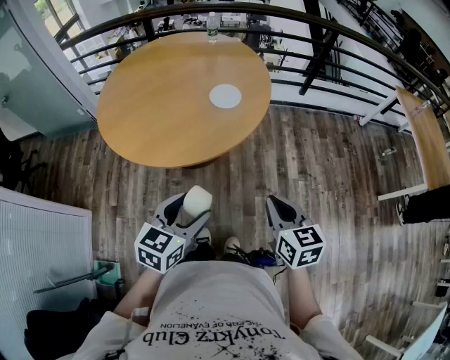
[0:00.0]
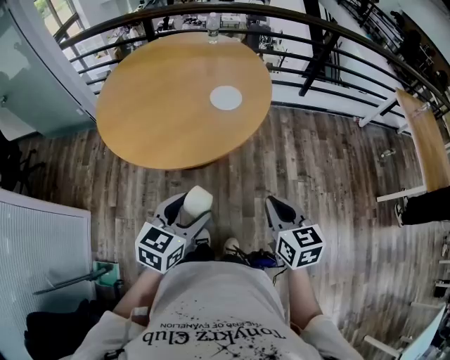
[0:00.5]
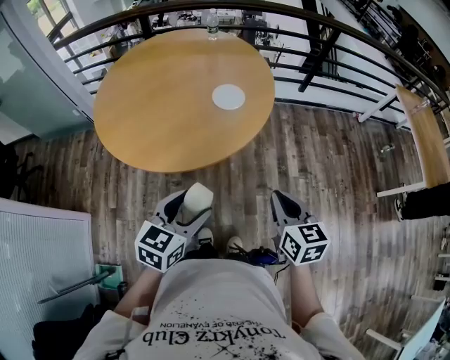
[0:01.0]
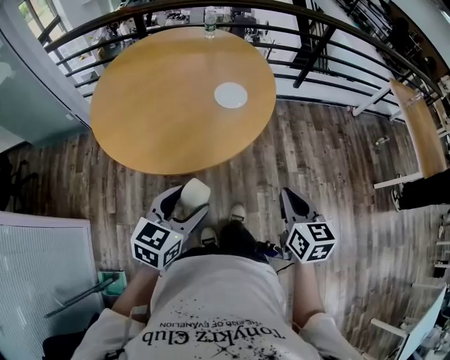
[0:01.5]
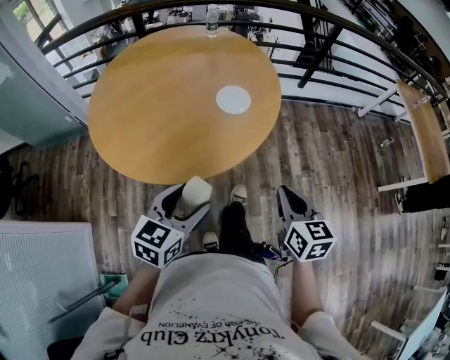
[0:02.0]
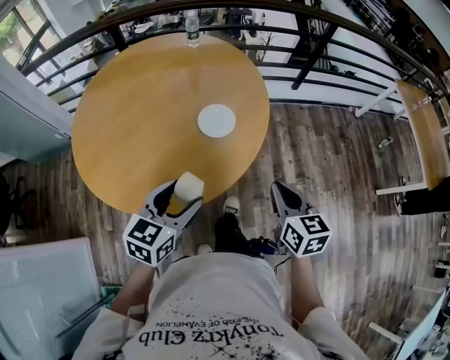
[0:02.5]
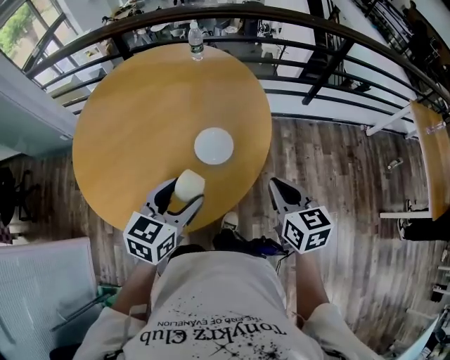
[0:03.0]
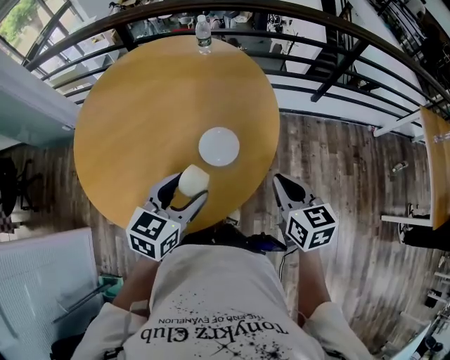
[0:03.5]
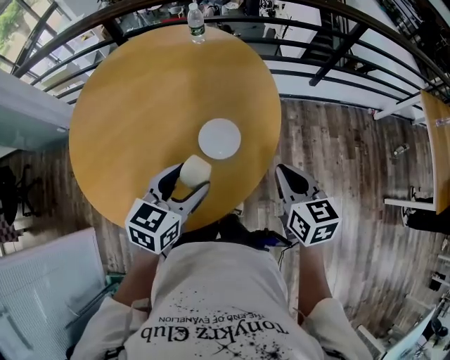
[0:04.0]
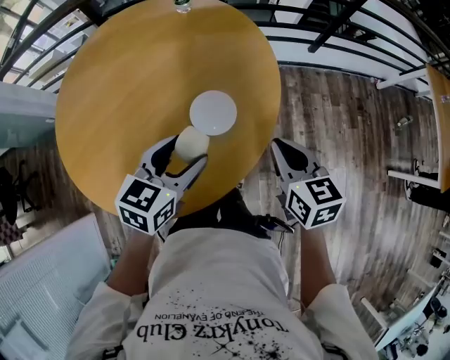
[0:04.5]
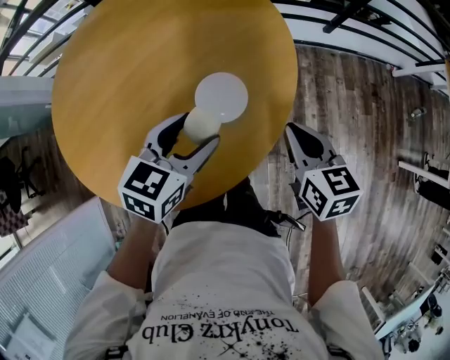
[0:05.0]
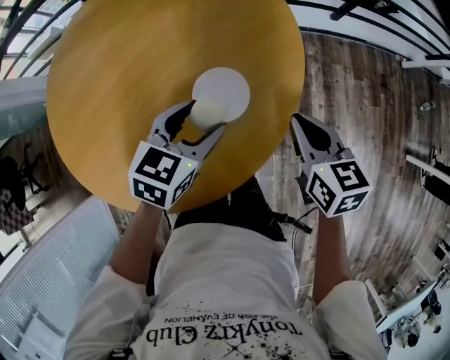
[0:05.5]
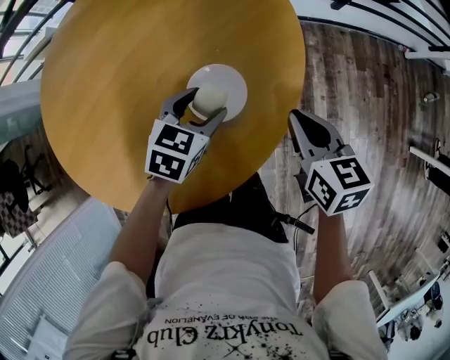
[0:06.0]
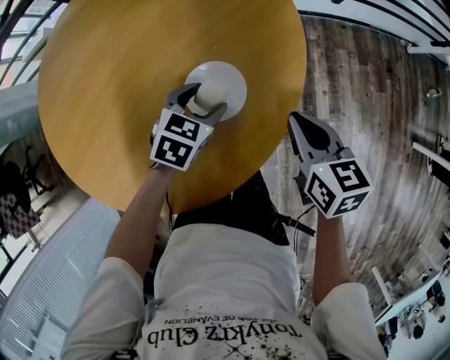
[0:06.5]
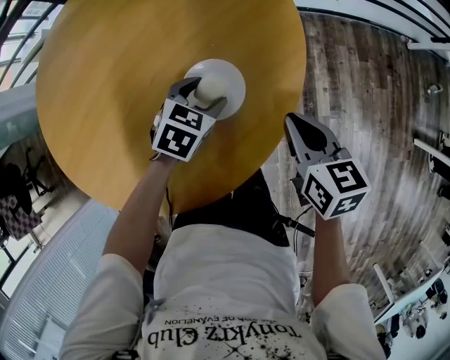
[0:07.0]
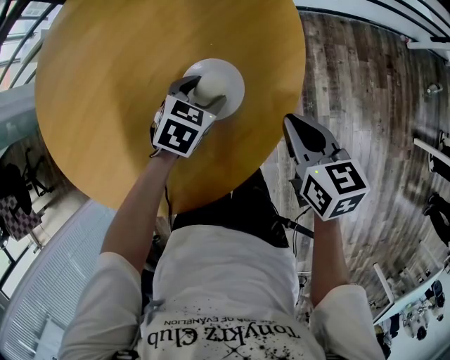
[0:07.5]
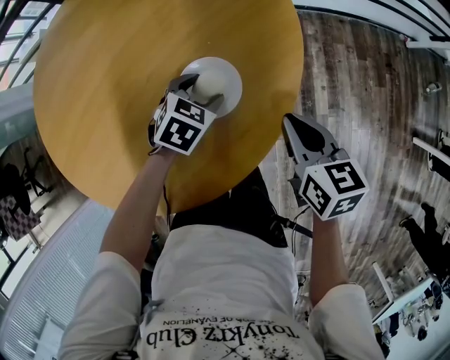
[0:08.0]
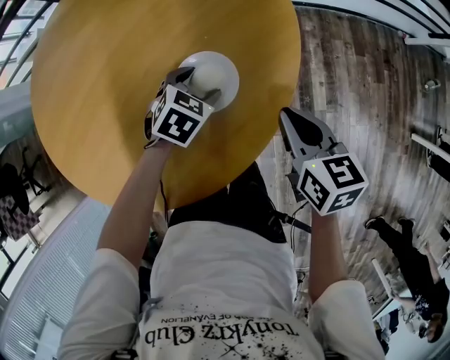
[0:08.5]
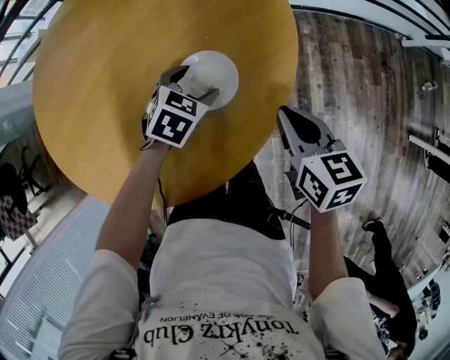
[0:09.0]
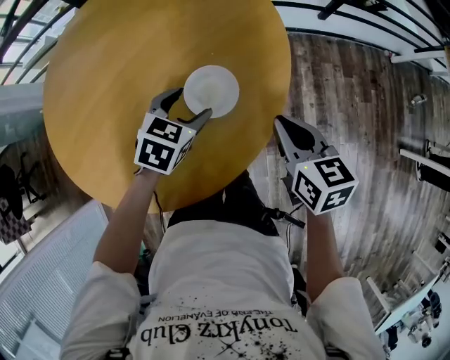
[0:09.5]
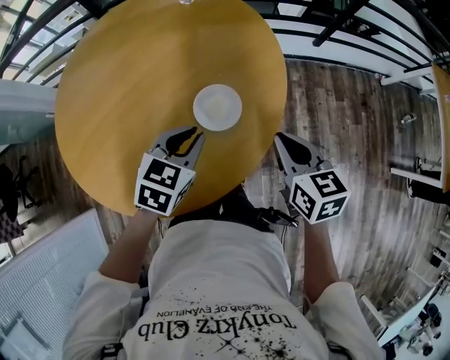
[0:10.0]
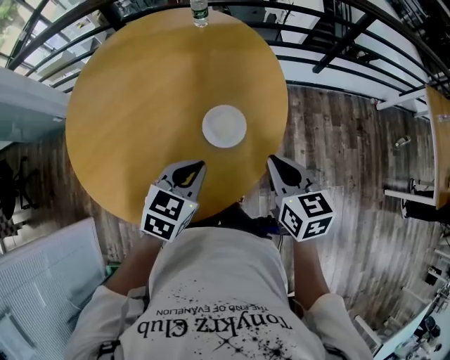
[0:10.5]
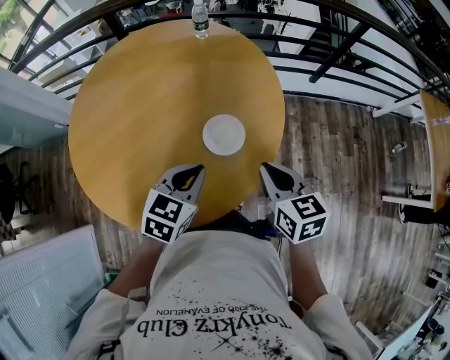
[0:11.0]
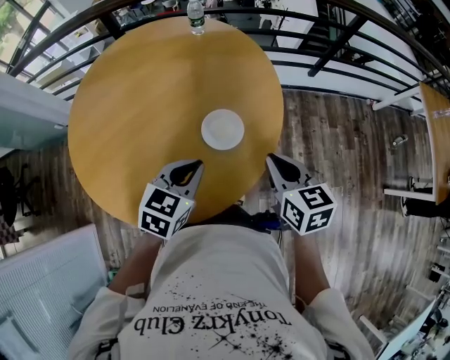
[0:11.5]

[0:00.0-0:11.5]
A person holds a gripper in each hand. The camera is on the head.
0:00.0 to 0:02.0: The left gripper travels to the left and forward by approximately 15 cm. Meanwhile the right gripper heads forward and to the left, covering some 10 cm.
0:02.0 to 0:04.0: The two grippers go roughly 30 cm forward.
0:04.0 to 0:06.0: The right gripper moves downward and forward, some 15 cm. The left gripper shifts about 25 cm downward and forward, and rotates some 20 degrees.
0:06.0 to 0:07.5: The left gripper heads downward, covering about 5 cm.
0:07.5 to 0:09.5: The right gripper travels upward by roughly 5 cm. The left gripper shifts roughly 10 cm upward.
0:09.5 to 0:11.5: The right gripper is displaced upward and backward by some 10 cm, while the left gripper shifts roughly 20 cm upward and backward, and closes its fingers.

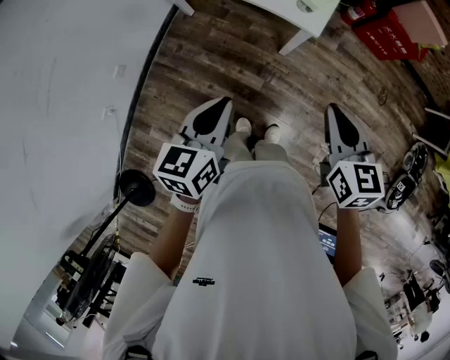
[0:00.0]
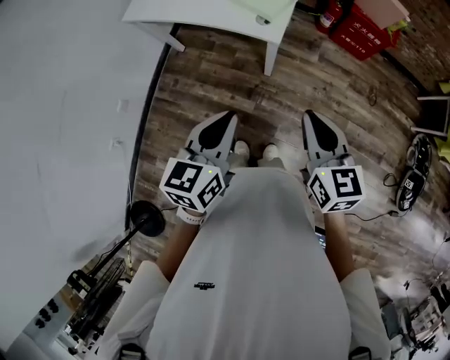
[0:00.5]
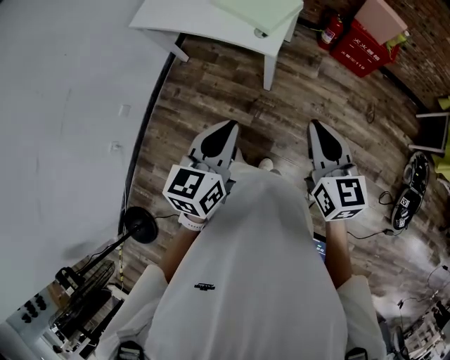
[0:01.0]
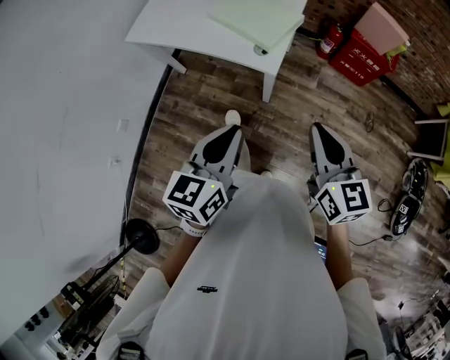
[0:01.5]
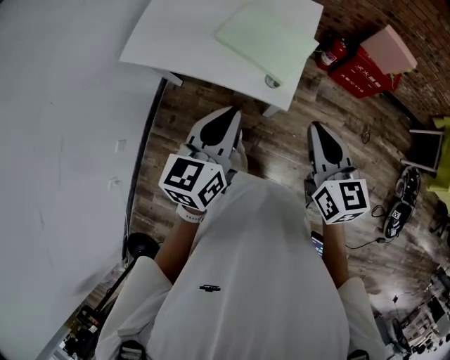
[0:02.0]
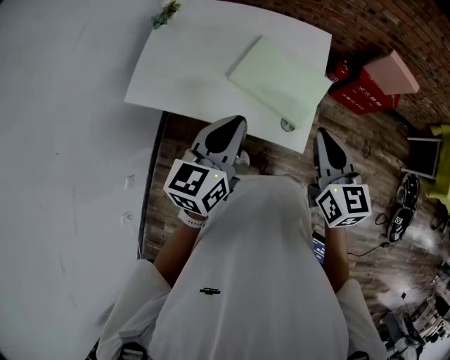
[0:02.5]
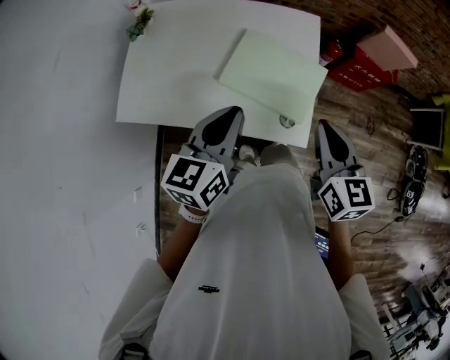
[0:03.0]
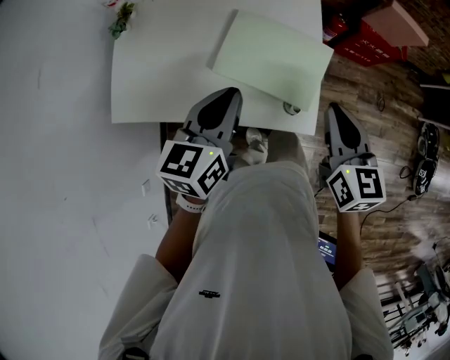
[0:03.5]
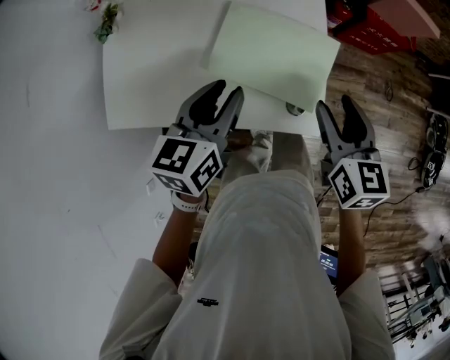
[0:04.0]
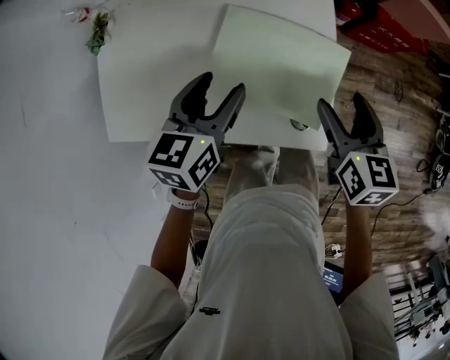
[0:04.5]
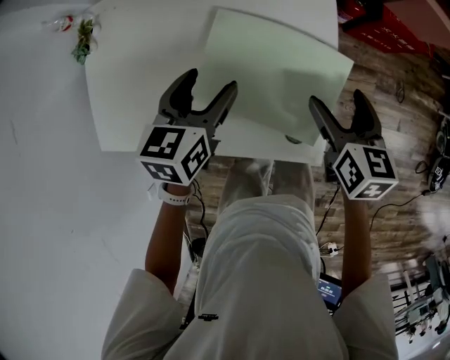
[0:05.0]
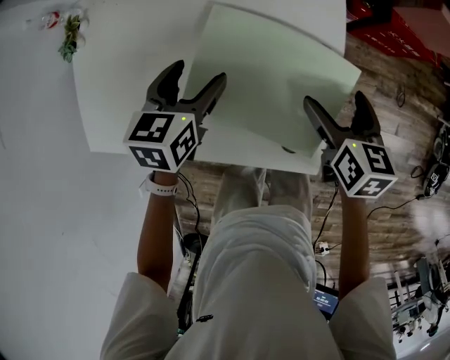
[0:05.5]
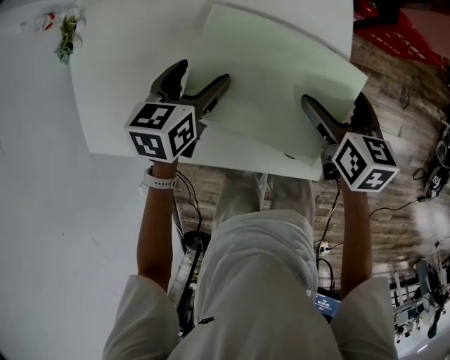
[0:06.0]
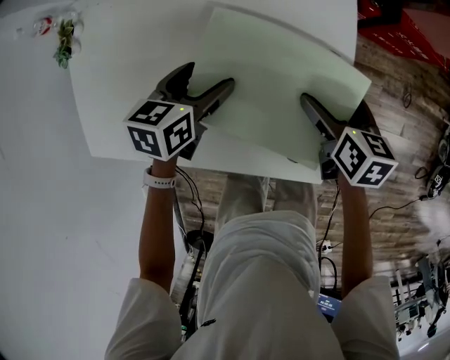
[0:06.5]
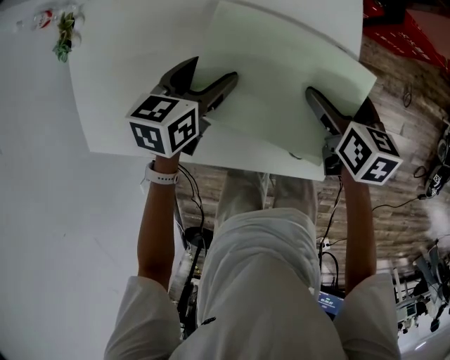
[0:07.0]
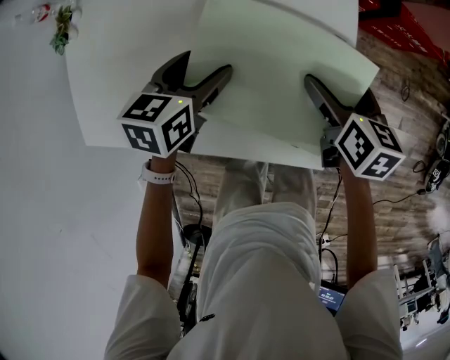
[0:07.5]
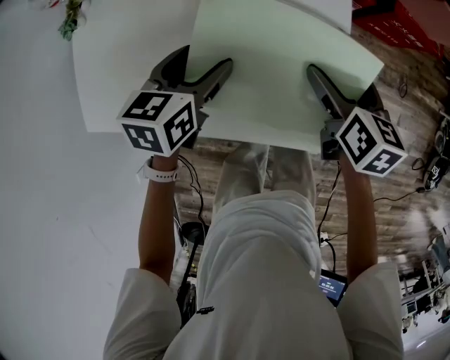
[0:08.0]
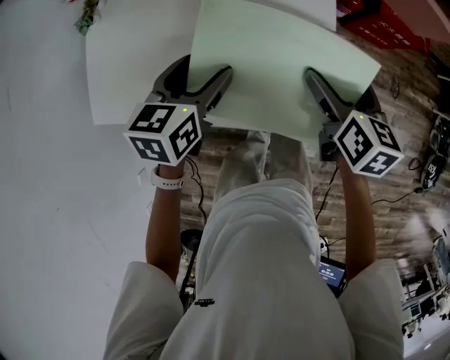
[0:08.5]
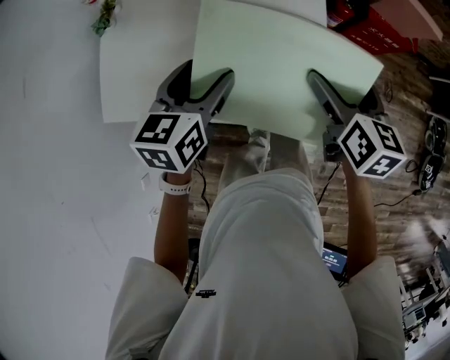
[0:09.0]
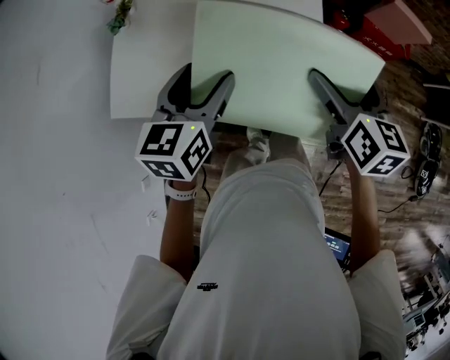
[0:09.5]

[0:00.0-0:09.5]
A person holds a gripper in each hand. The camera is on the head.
0:00.0 to 0:02.0: Both grippers move forward and upward, some 20 cm.
0:02.0 to 0:04.0: The right gripper goes about 20 cm forward and downward, rotates approximately 20 degrees, and opens its fingers, while the left gripper moves forward, about 25 cm, and changes its angle by about 20 degrees.
0:04.0 to 0:05.5: The grippers both shift downward and forward by some 20 cm. The right gripper opens up, while the left gripper opens up.
0:05.5 to 0:07.5: The grippers stay close to where they were, moving slightly.
0:07.5 to 0:09.5: The right gripper goes roughly 25 cm upward, and turns by about 20 degrees. Meanwhile the left gripper travels upward and backward by roughly 25 cm, and swivels some 20 degrees.

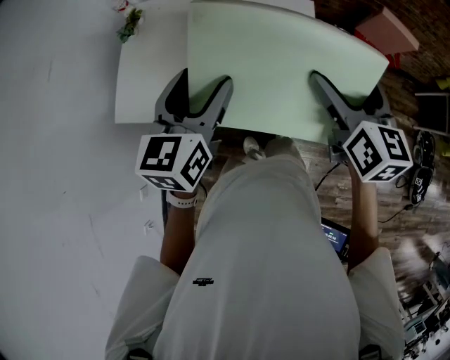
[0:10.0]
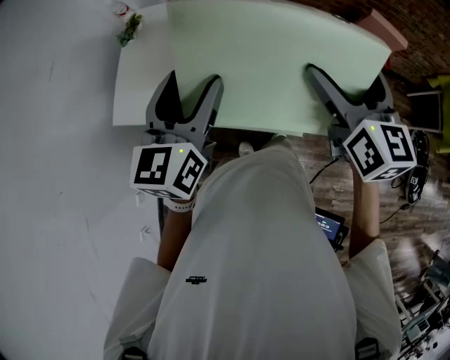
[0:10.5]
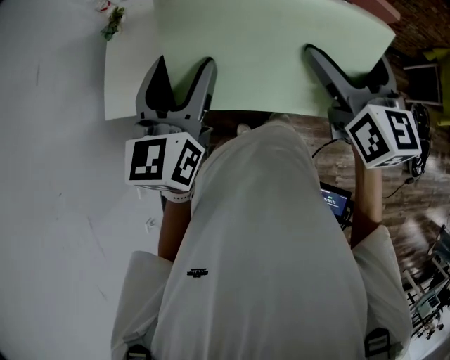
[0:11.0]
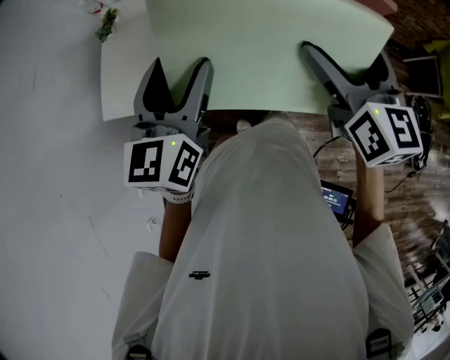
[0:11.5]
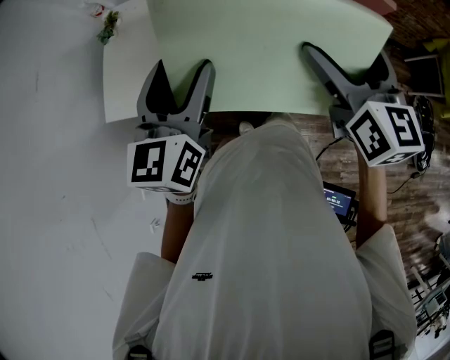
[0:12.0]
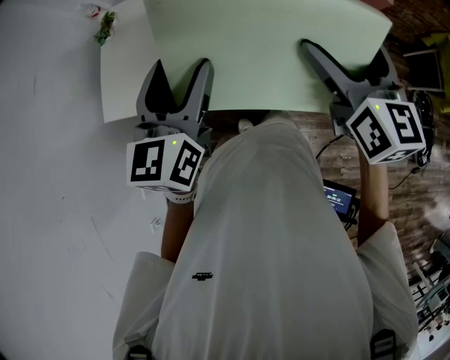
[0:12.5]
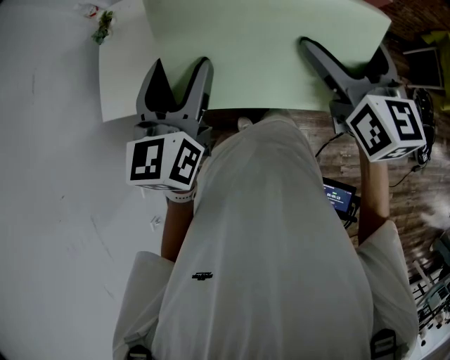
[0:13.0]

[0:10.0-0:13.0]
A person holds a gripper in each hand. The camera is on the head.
0:10.0 to 0:11.5: The left gripper ends up roughly 5 cm from where it was. Meanwhile the right gripper shifts some 10 cm upward and backward.
0:11.5 to 0:13.0: There are only small adjustments of the grippers.

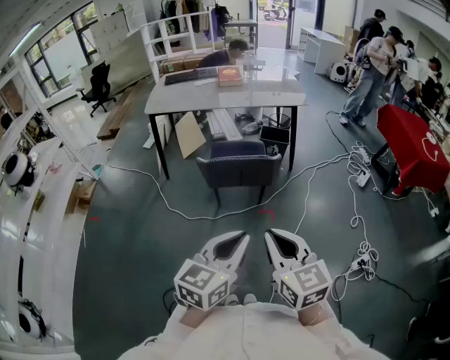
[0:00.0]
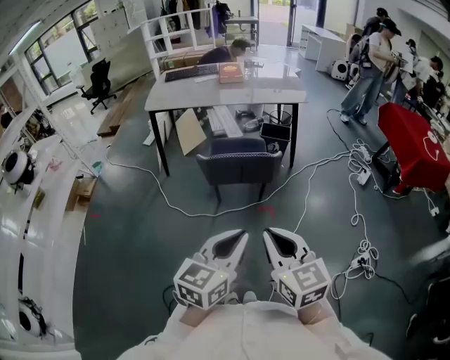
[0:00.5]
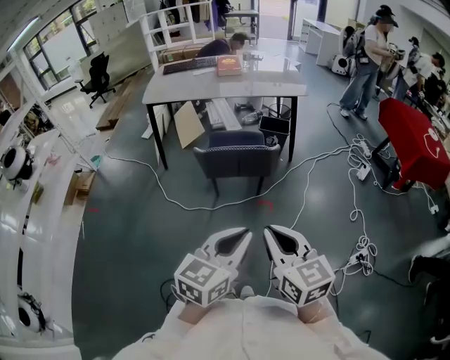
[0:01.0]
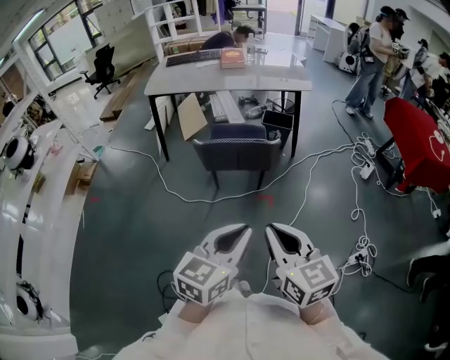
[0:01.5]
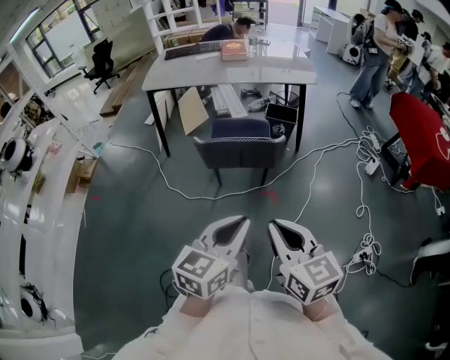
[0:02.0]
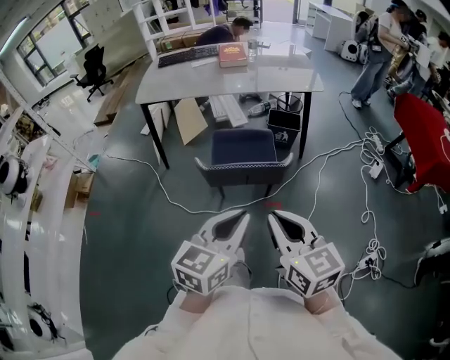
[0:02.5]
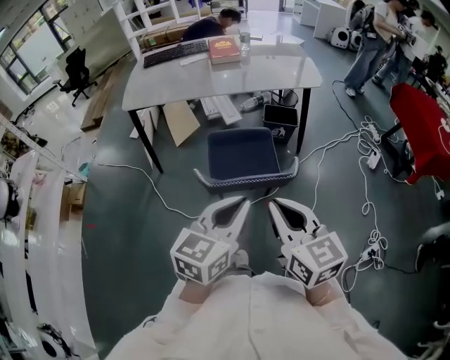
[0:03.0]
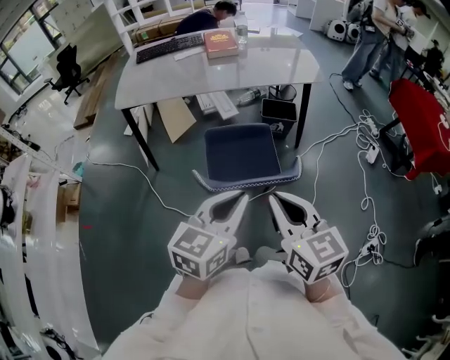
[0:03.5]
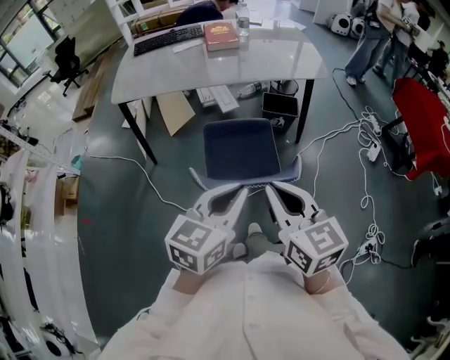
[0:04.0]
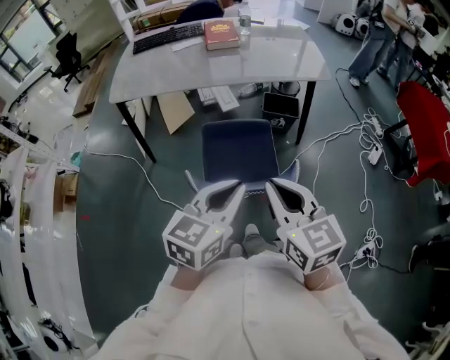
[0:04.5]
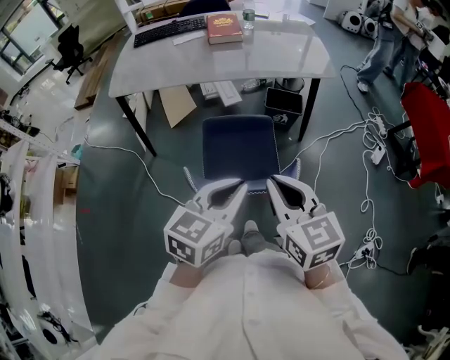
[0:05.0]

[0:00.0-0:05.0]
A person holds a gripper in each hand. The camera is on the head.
0:00.0 to 0:02.5: Both grippers move forward, some 20 cm.
0:02.5 to 0:05.0: The grippers both shift forward by roughly 25 cm.
